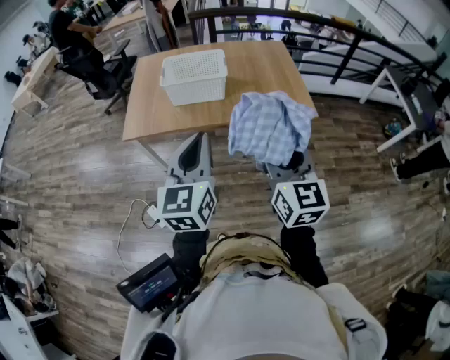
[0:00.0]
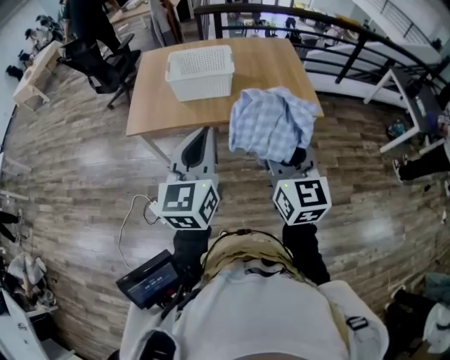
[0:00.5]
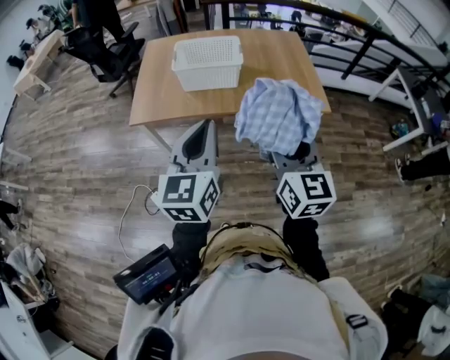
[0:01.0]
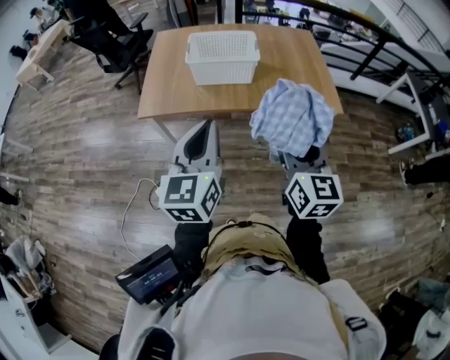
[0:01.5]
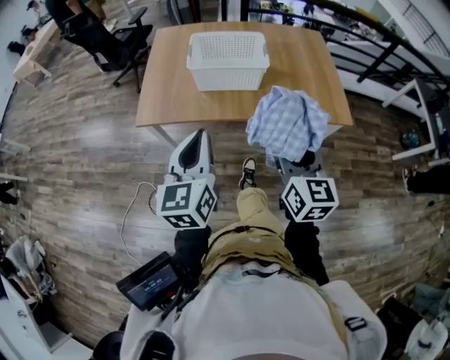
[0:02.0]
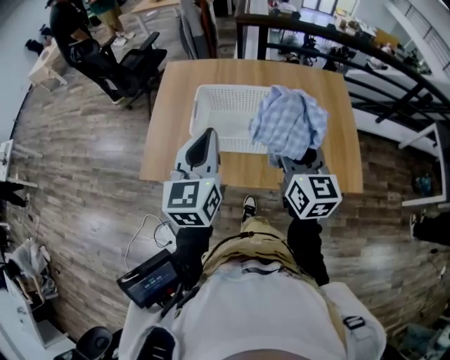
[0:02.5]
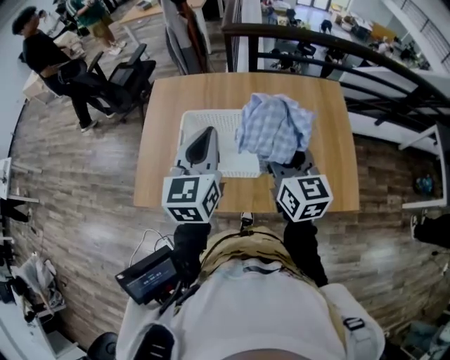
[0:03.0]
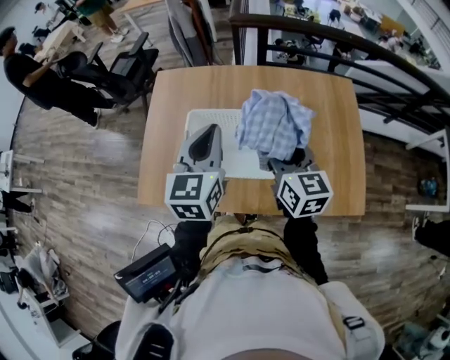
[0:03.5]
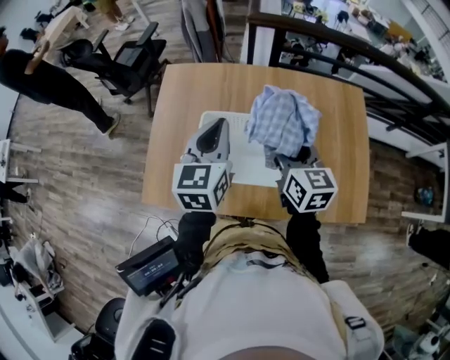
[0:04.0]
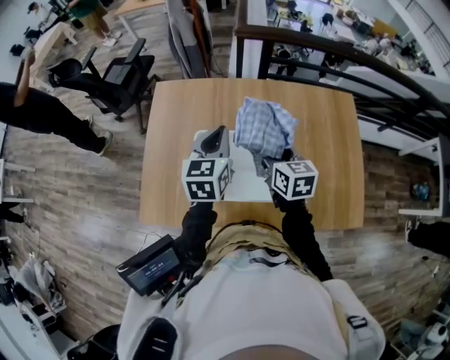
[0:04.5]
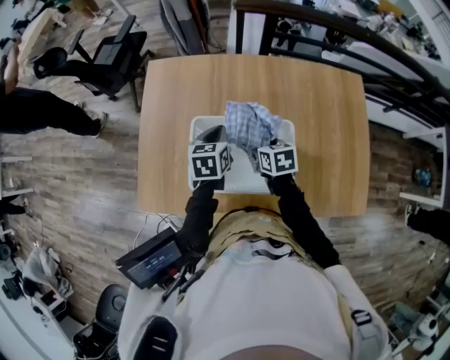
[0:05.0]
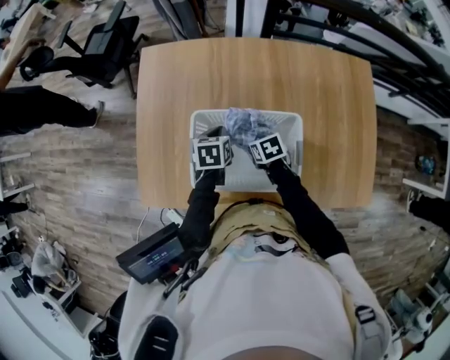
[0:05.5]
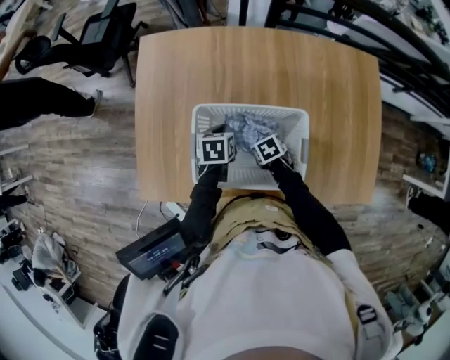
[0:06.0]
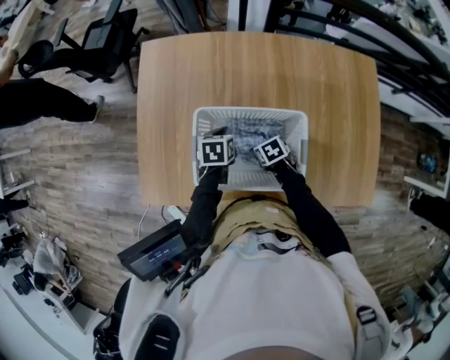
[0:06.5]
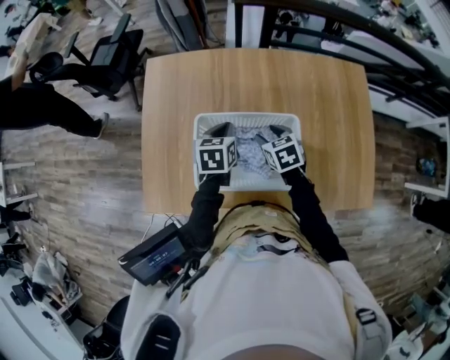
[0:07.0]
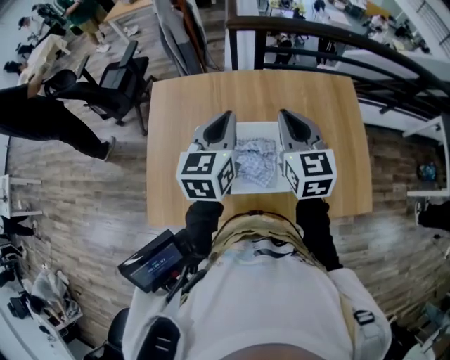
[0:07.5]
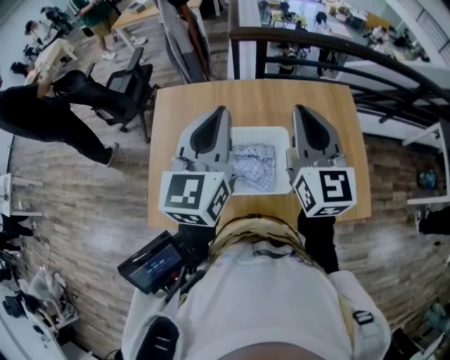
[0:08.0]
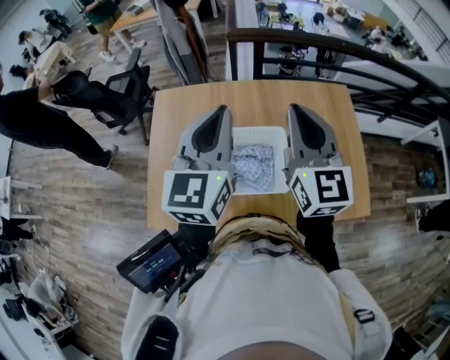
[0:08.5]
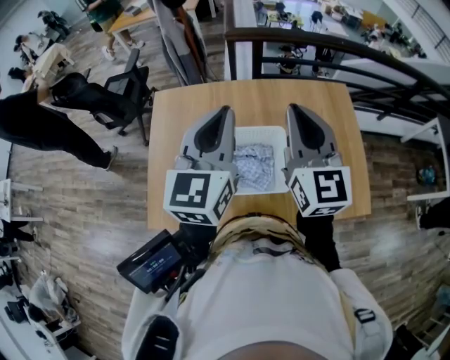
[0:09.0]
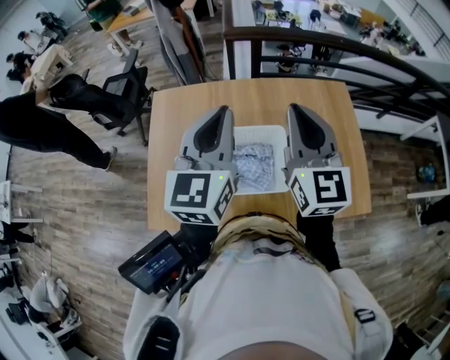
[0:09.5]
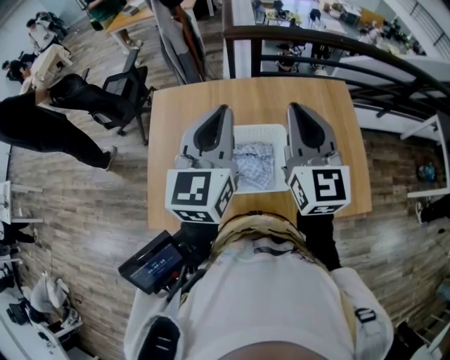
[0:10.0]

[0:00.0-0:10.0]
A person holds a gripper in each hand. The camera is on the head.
0:00.0 to 0:02.0: The right gripper is displaced forward, to the left and downward by about 20 cm, while the left gripper travels to the left, forward and downward by roughly 20 cm.
0:02.0 to 0:04.0: The pair of grippers is taken forward, some 50 cm.
0:04.0 to 0:06.0: Both grippers travel together downward, about 35 cm. The right gripper points its fingers about 50 degrees further downward; the left gripper tips its fingers downward by some 40 degrees.
0:06.0 to 0:08.0: The two grippers go approximately 50 cm upward. The right gripper tilts its fingers approximately 70 degrees upward, and closes up; the left gripper points its fingers approximately 60 degrees further upward.
0:08.0 to 0:10.0: The grippers move only a little.

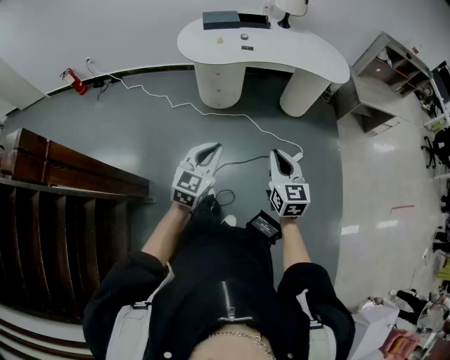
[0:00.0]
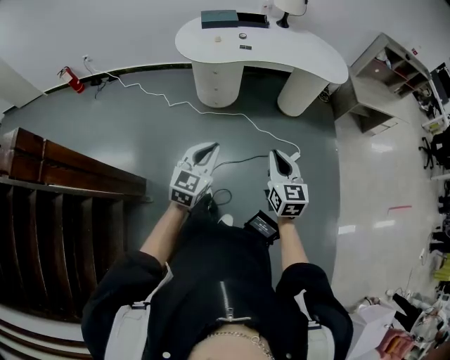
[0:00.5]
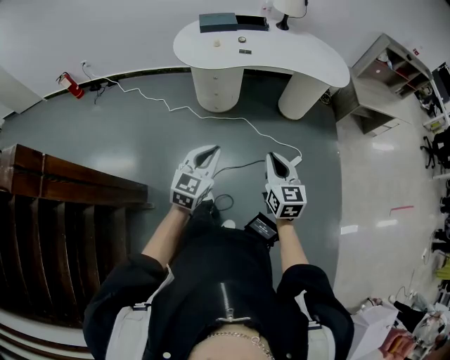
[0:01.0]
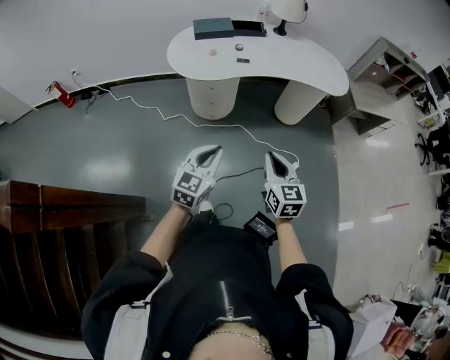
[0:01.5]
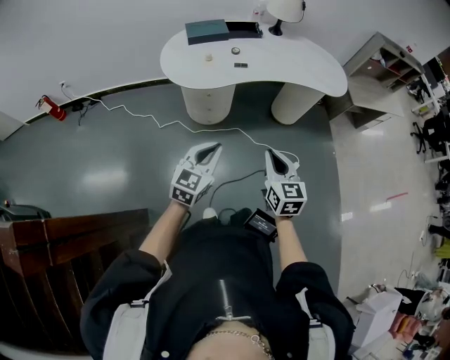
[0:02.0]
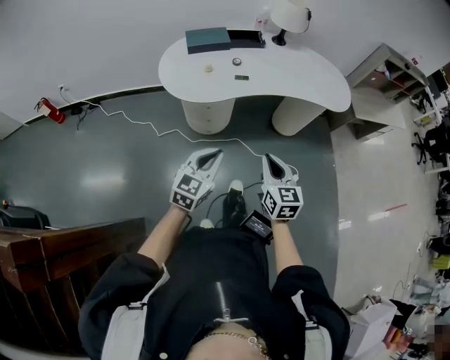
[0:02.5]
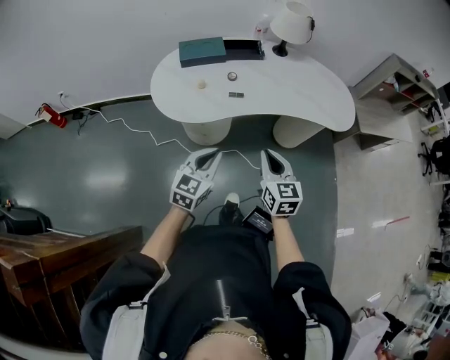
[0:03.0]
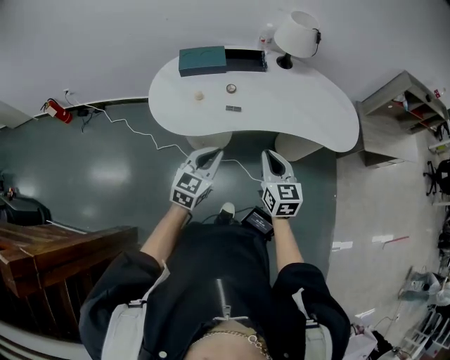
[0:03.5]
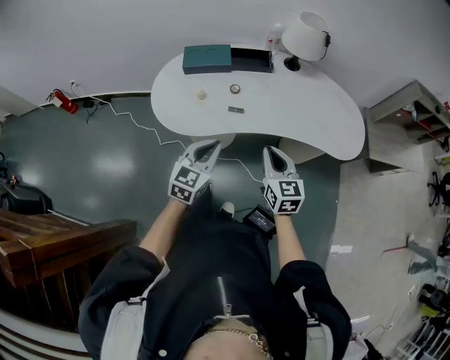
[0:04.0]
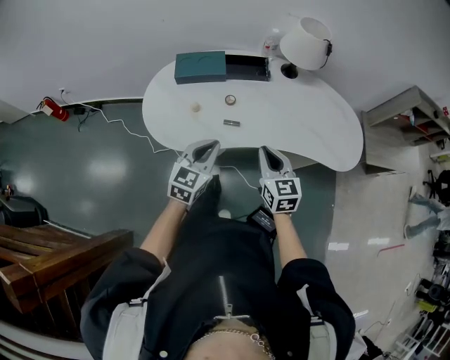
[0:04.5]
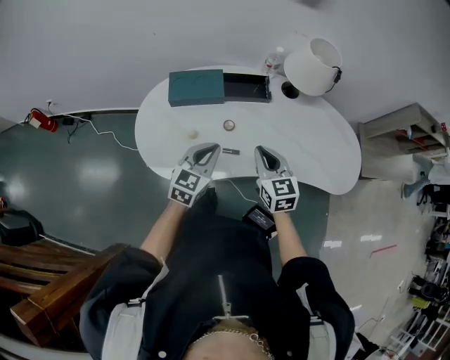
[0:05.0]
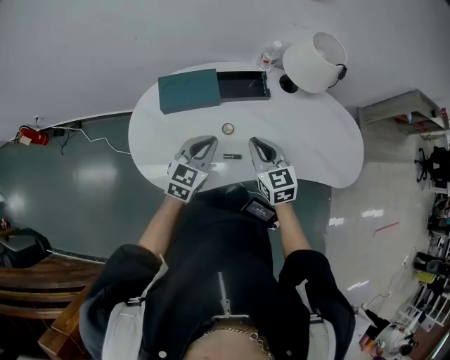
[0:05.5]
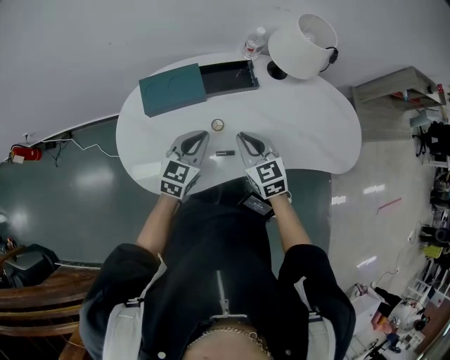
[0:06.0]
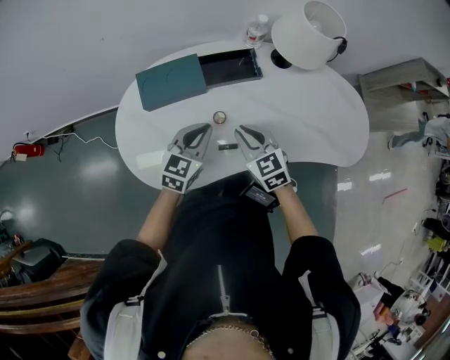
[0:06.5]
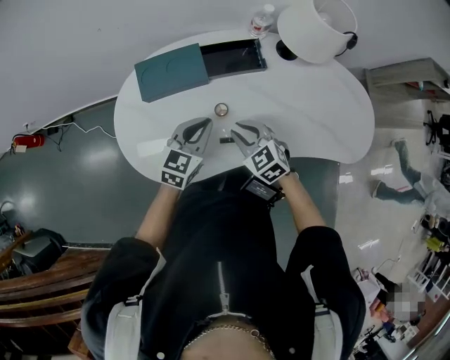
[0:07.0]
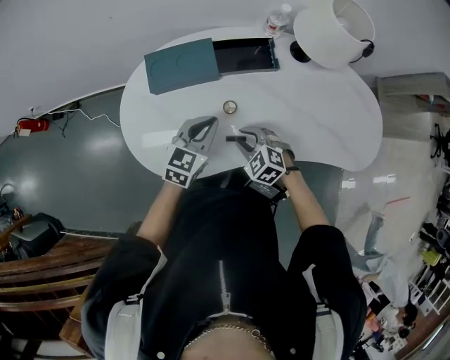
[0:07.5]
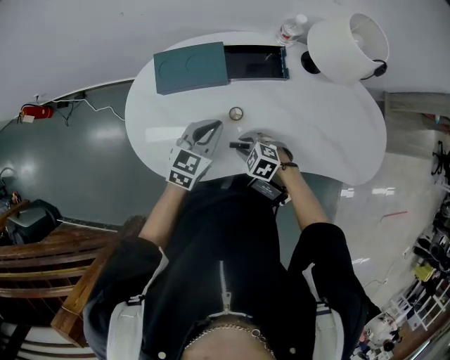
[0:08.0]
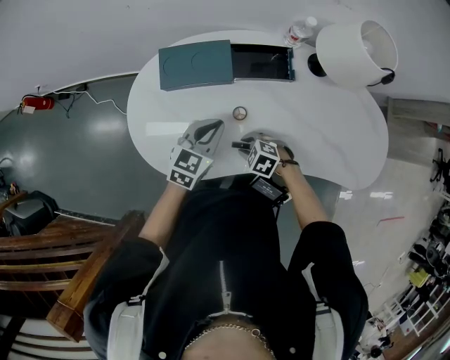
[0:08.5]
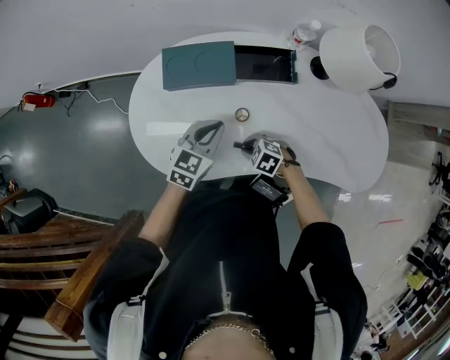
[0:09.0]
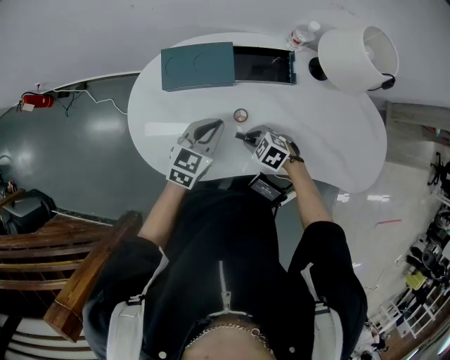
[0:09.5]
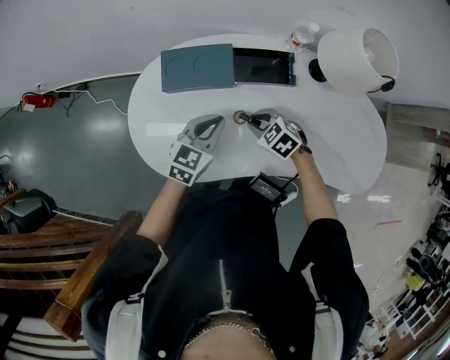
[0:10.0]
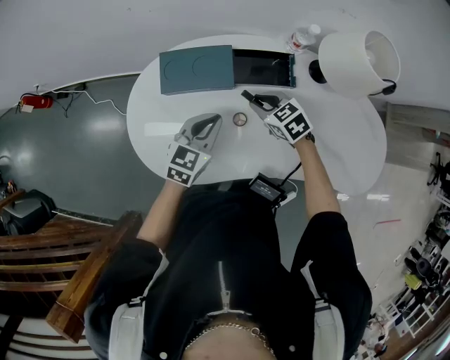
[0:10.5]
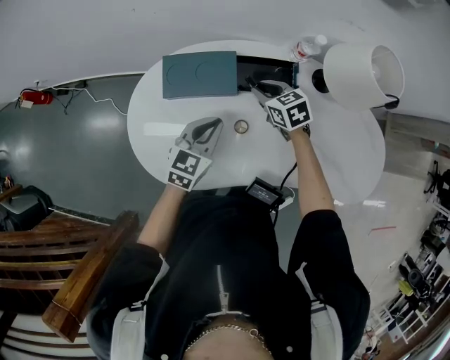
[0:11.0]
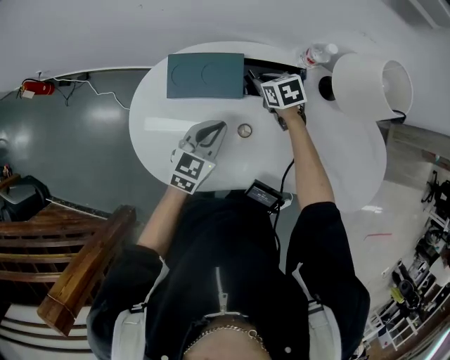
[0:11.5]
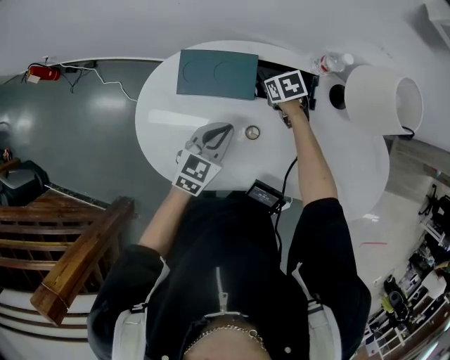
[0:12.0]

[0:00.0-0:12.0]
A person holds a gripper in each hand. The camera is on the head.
0:00.0 to 0:02.0: The left gripper heads forward, covering approximately 20 cm; the right gripper is displaced forward and to the left by approximately 20 cm.
0:02.0 to 0:04.0: Both grippers move forward, roughly 30 cm.
0:04.0 to 0:06.0: The right gripper moves forward and to the left, about 30 cm; the left gripper heads forward, covering roughly 30 cm.
0:06.0 to 0:08.0: The right gripper travels downward by about 20 cm, points its fingers approximately 30 degrees further downward, and opens its fingers.
0:08.0 to 0:10.0: The right gripper changes place by roughly 10 cm.
0:10.0 to 0:12.0: The right gripper shifts roughly 20 cm forward, and changes its angle by approximately 30 degrees.

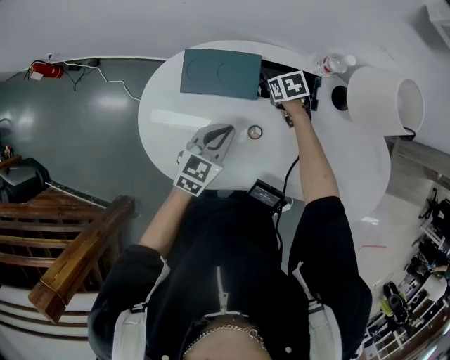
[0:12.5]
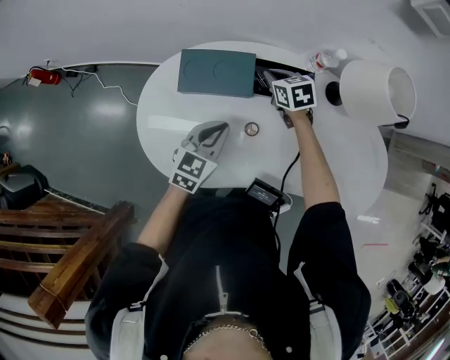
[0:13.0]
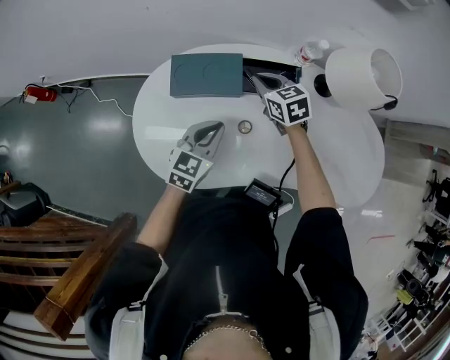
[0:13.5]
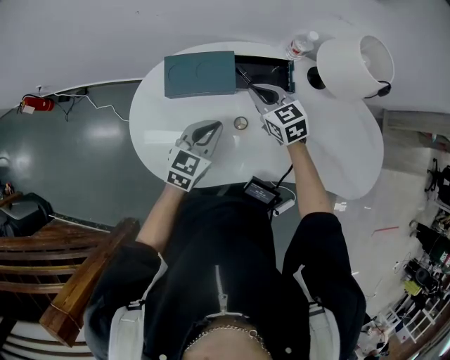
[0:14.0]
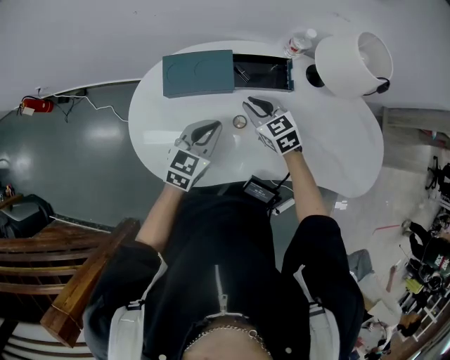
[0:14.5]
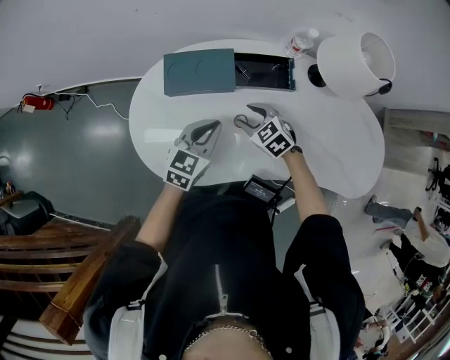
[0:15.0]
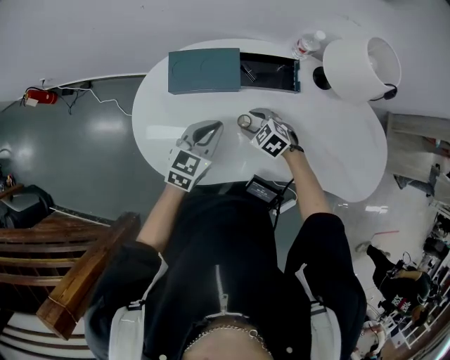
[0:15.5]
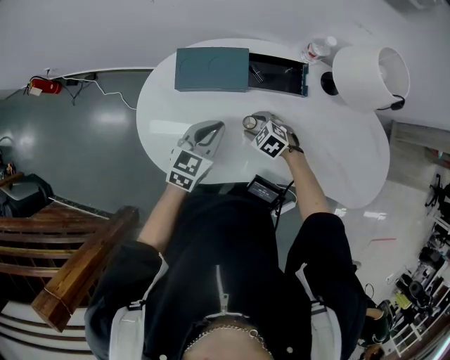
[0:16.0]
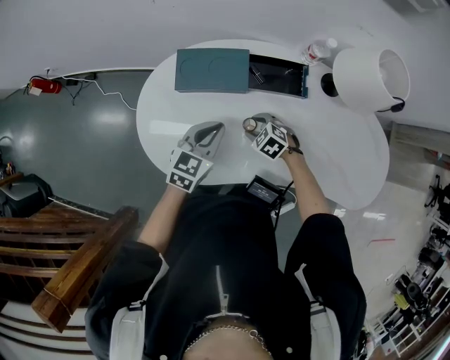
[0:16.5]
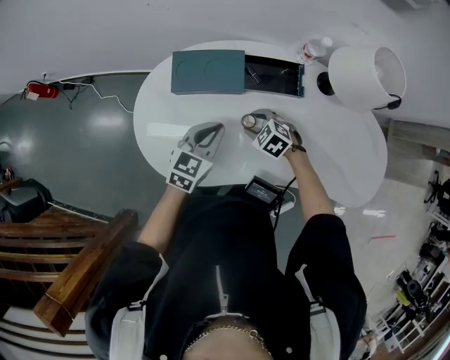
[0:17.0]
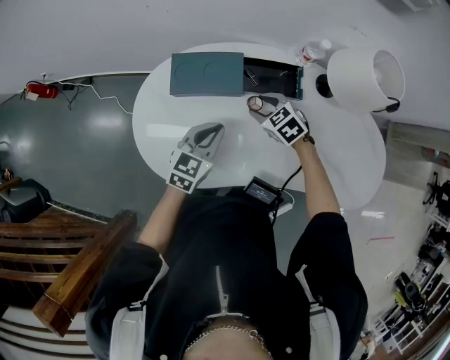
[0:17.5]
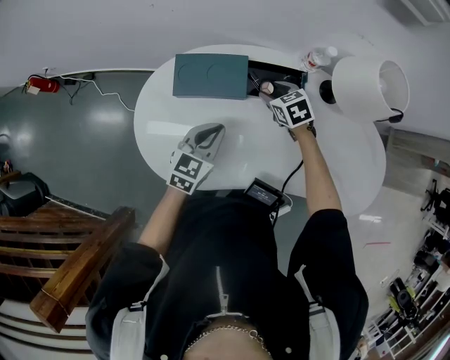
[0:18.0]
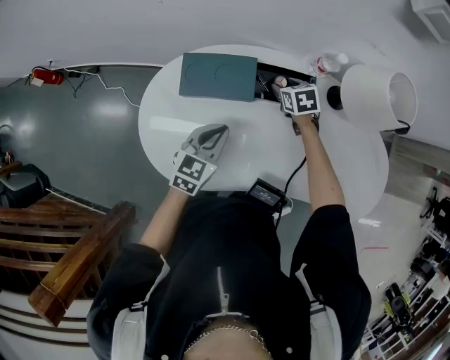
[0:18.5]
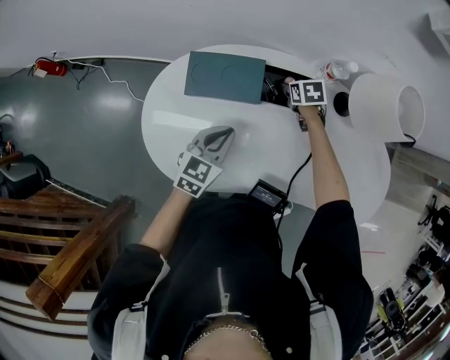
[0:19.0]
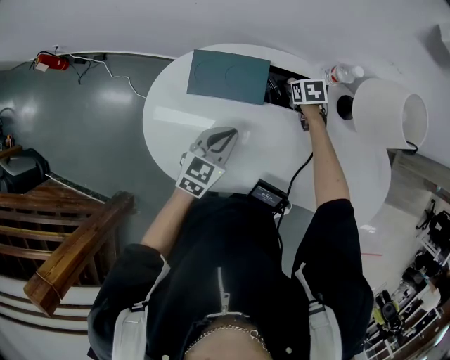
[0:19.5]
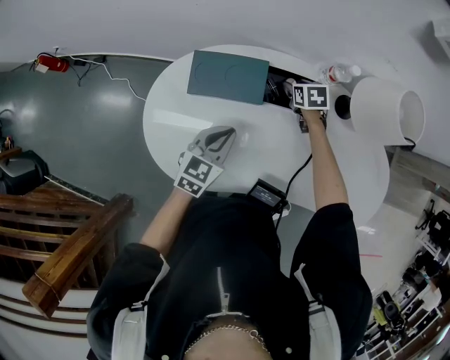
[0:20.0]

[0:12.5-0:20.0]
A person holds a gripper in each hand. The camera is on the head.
0:12.5 to 0:14.5: The right gripper heads backward and upward, covering approximately 15 cm, and changes its angle by about 30 degrees.
0:14.5 to 0:16.5: The right gripper goes some 15 cm downward and backward, rotates about 40 degrees, and opens up.
0:16.5 to 0:18.0: The right gripper heads forward, upward and to the right, covering some 20 cm, and turns by approximately 30 degrees.
0:18.0 to 0:20.0: The right gripper shifts about 5 cm forward.
